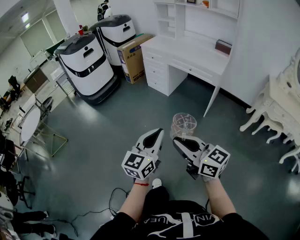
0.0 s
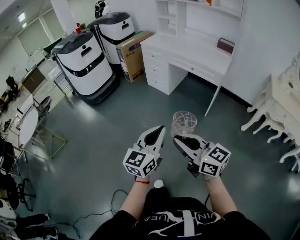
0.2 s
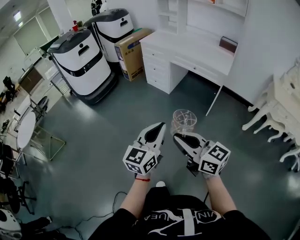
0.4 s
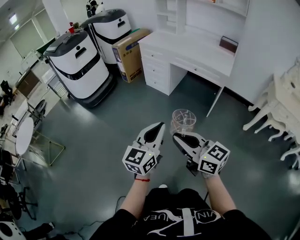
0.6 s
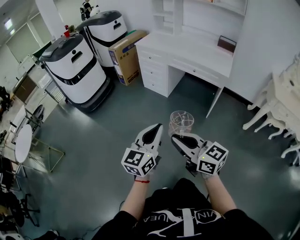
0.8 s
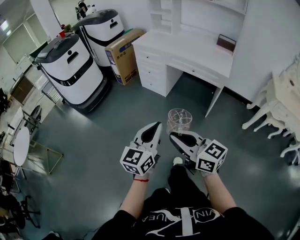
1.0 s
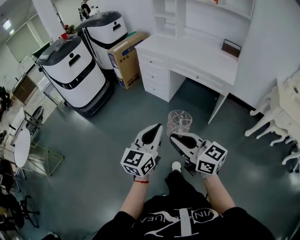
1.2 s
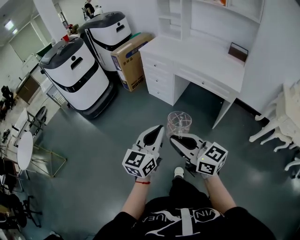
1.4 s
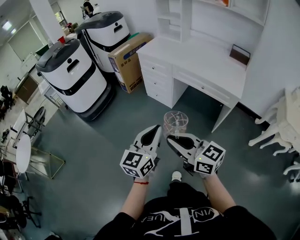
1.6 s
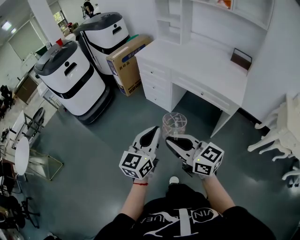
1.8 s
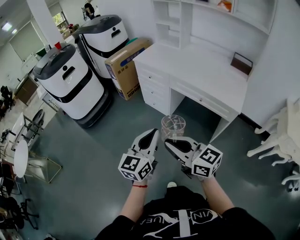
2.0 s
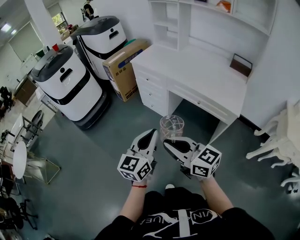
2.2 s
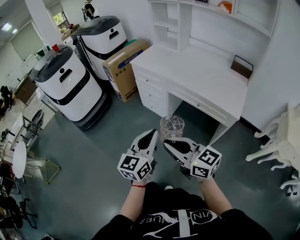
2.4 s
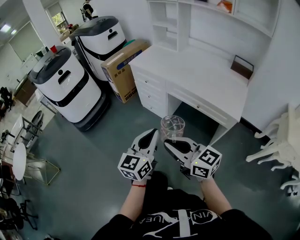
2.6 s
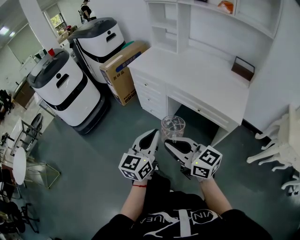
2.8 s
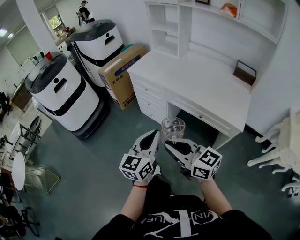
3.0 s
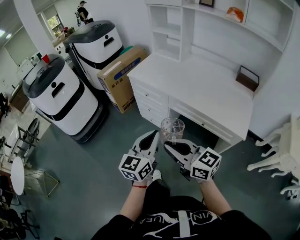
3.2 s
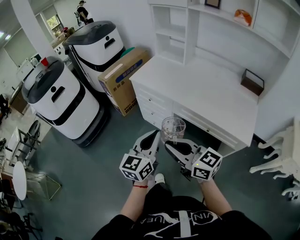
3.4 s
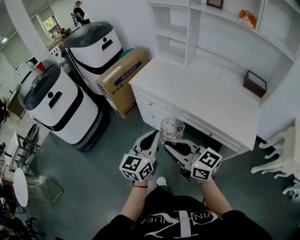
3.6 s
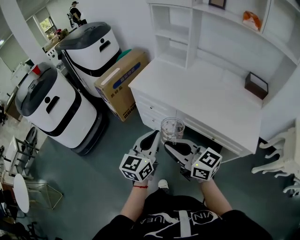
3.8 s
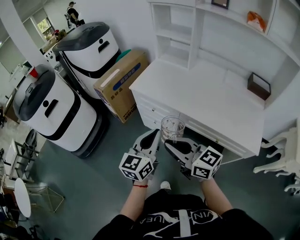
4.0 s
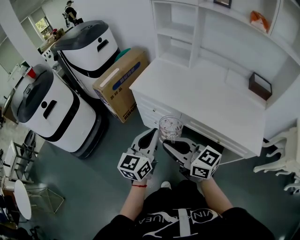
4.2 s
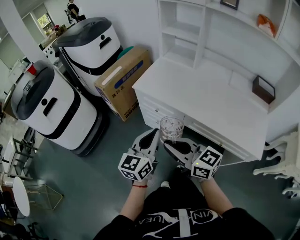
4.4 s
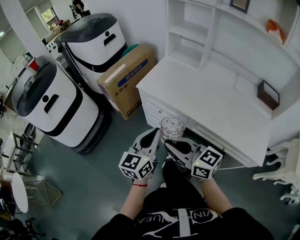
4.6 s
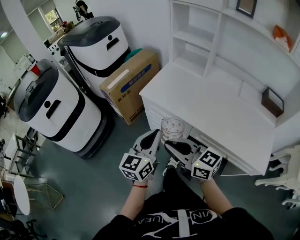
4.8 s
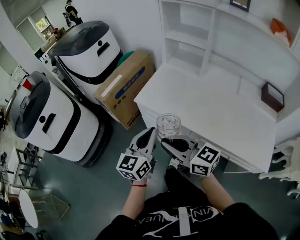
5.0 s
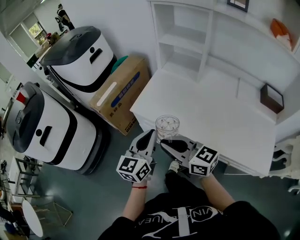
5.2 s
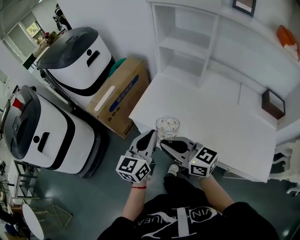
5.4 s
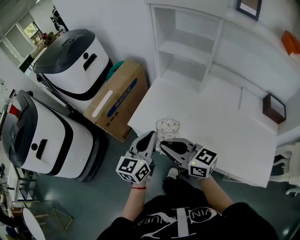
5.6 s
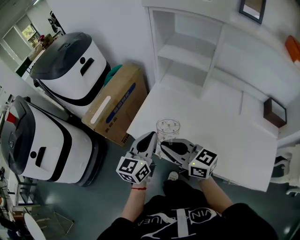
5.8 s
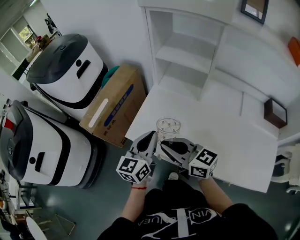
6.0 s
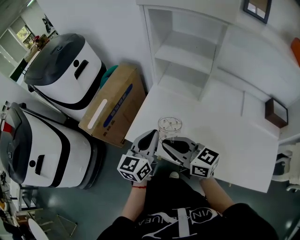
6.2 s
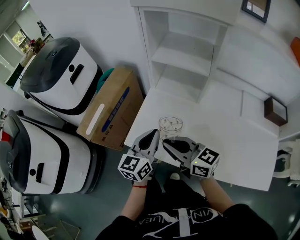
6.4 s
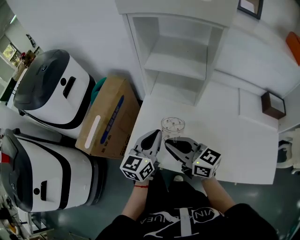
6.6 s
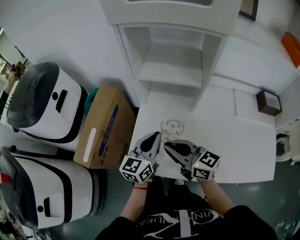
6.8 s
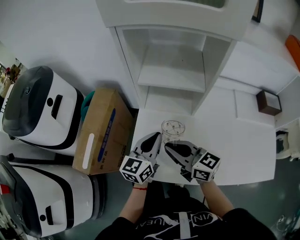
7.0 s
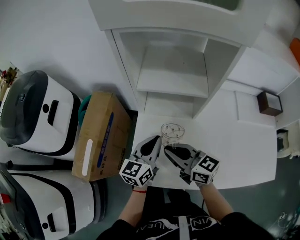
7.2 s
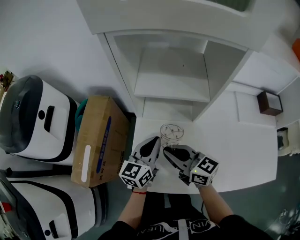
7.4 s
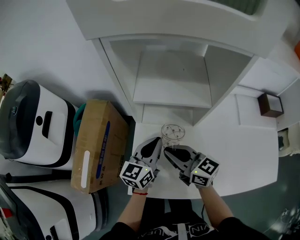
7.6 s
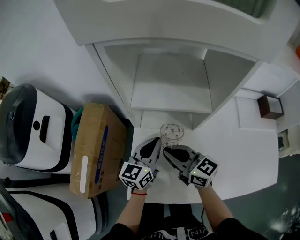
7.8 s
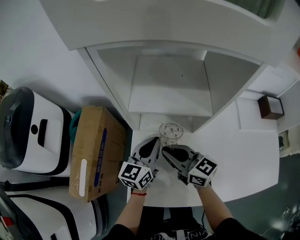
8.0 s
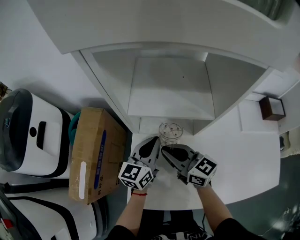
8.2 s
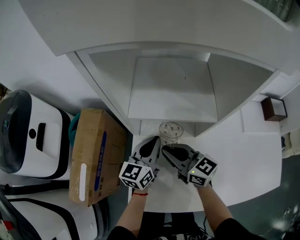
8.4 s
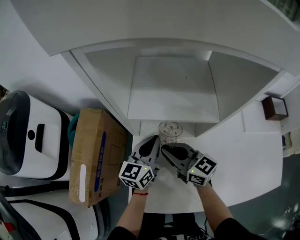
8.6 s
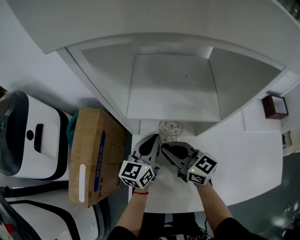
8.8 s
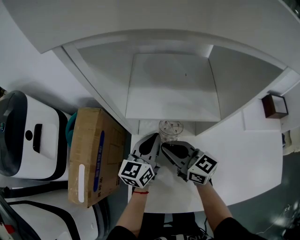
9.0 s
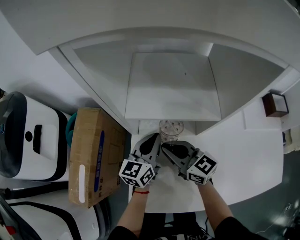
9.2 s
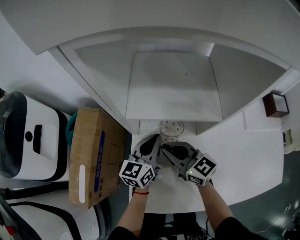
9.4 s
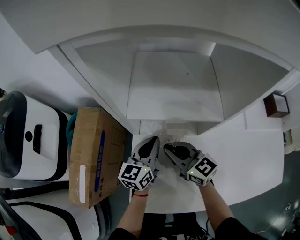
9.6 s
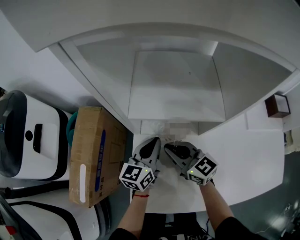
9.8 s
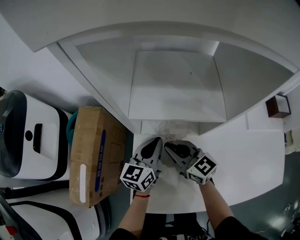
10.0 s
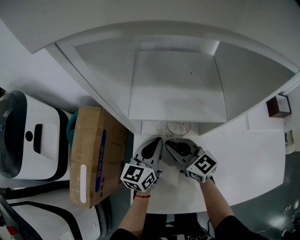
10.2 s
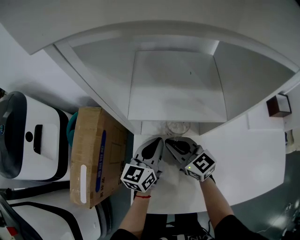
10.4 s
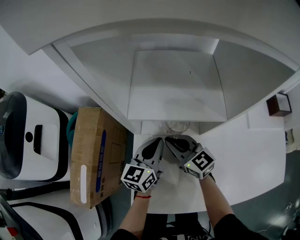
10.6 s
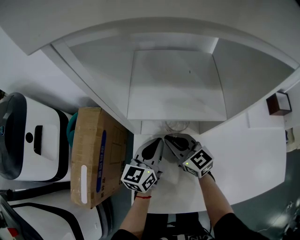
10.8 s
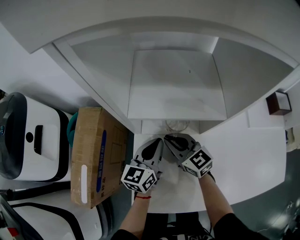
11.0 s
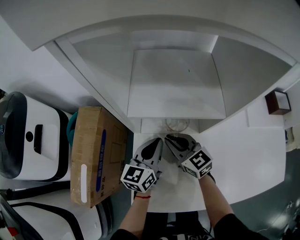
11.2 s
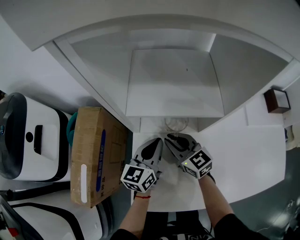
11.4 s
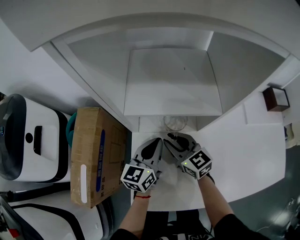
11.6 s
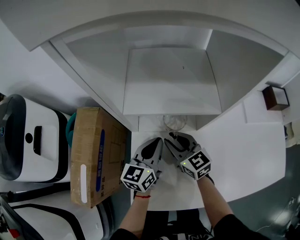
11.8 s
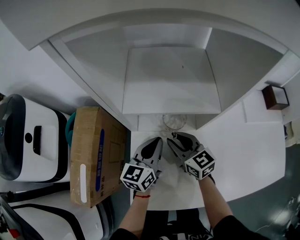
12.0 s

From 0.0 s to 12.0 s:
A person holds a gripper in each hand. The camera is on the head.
From 0.0 s to 1.6 s: The pair of grippers is taken forward, about 40 cm.
From 1.6 s to 3.0 s: The two grippers go about 25 cm forward and to the right.
From 3.0 s to 4.4 s: Both grippers move forward, roughly 30 cm.
From 4.4 s to 6.0 s: Both grippers travel together forward, roughly 35 cm.
From 6.0 s to 7.6 s: Both grippers travel together forward, some 20 cm. The right gripper changes its angle by some 20 degrees. The left gripper changes its angle by about 20 degrees.
From 7.6 s to 9.0 s: The grippers both shift forward by roughly 10 cm.
From 9.0 s to 10.4 s: The grippers move only a little.
From 10.4 s to 12.0 s: The grippers move only a little.

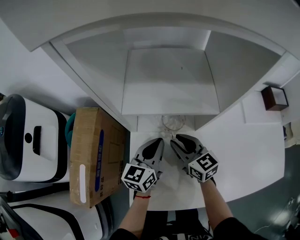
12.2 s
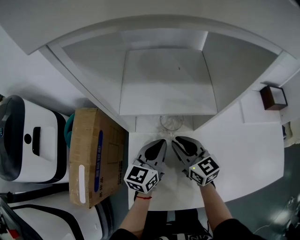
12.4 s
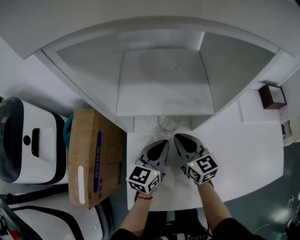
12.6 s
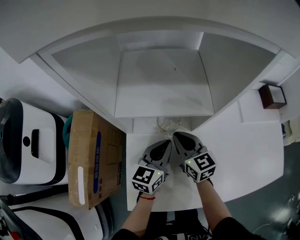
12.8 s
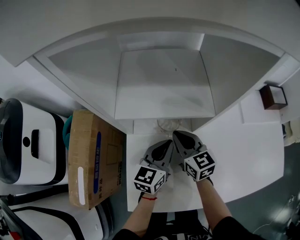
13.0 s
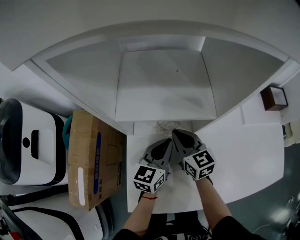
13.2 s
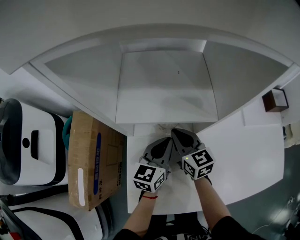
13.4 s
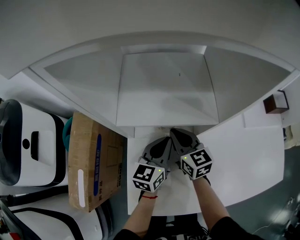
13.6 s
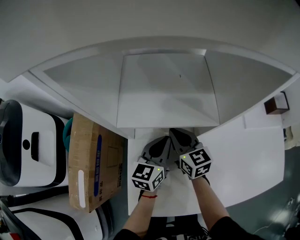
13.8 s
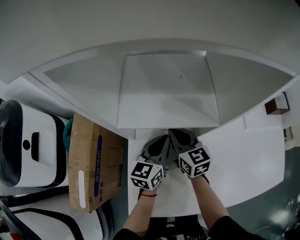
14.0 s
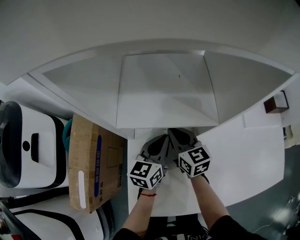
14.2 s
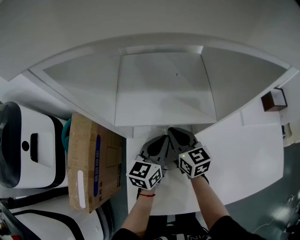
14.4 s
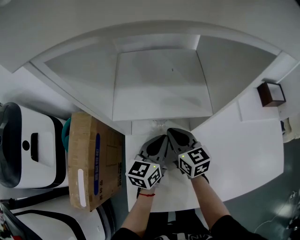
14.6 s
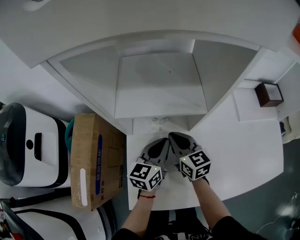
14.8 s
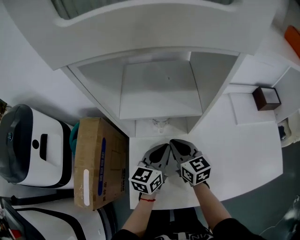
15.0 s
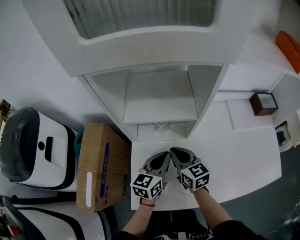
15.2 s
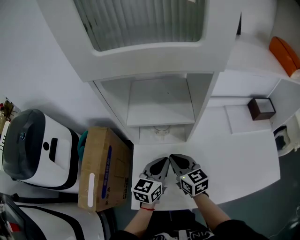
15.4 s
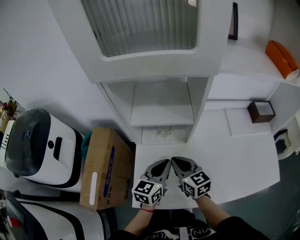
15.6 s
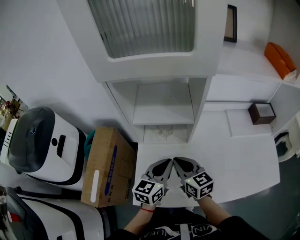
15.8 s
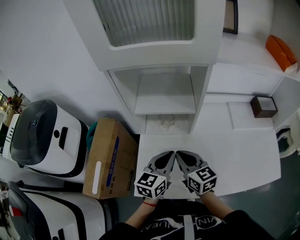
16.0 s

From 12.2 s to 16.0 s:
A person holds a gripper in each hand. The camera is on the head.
From 12.2 s to 13.4 s: The right gripper moves forward, some 5 cm.
From 13.4 s to 14.8 s: There are only small adjustments of the grippers.
From 14.8 s to 16.0 s: The left gripper is displaced upward and backward by approximately 15 cm. Meanwhile the right gripper shifts about 15 cm backward and upward.

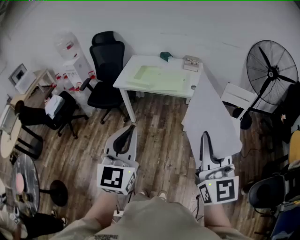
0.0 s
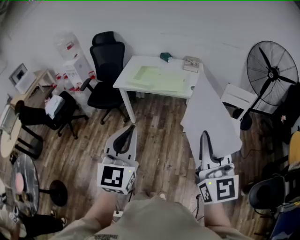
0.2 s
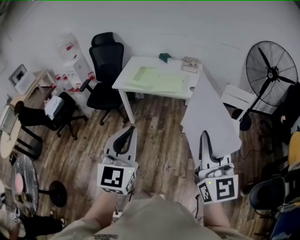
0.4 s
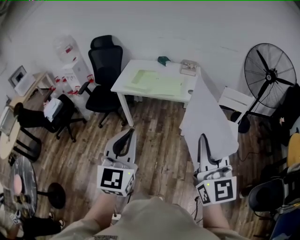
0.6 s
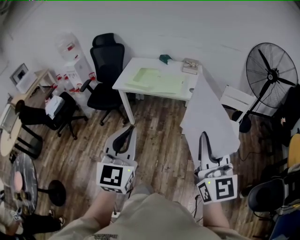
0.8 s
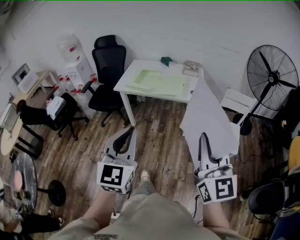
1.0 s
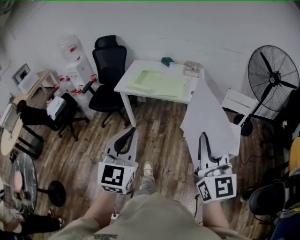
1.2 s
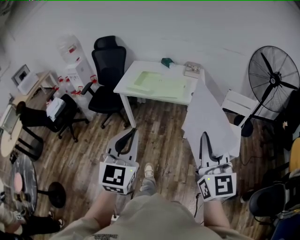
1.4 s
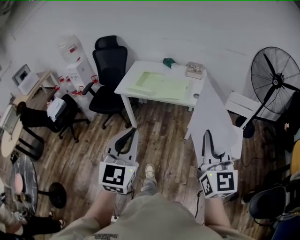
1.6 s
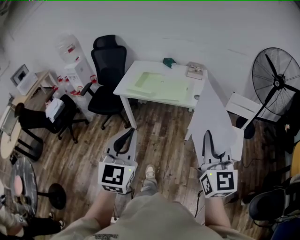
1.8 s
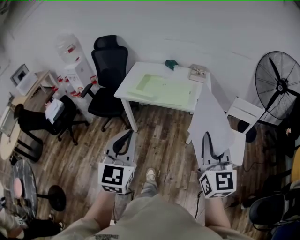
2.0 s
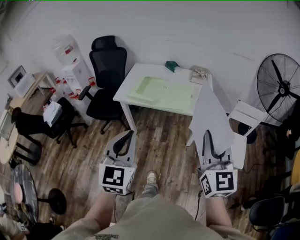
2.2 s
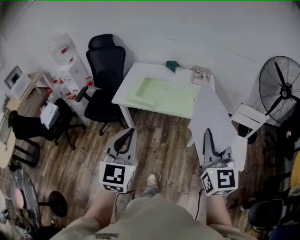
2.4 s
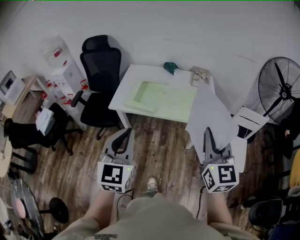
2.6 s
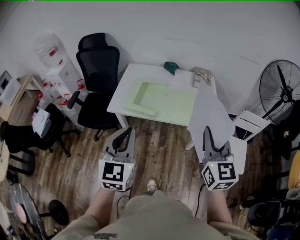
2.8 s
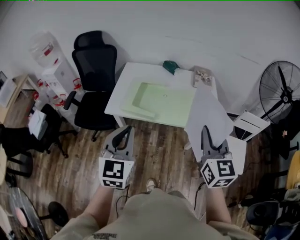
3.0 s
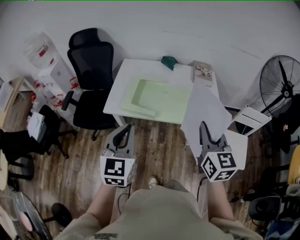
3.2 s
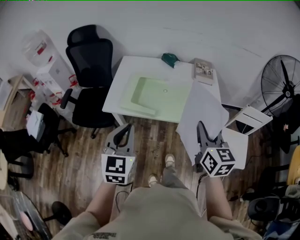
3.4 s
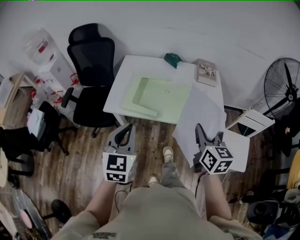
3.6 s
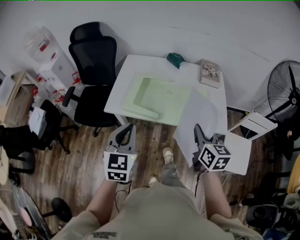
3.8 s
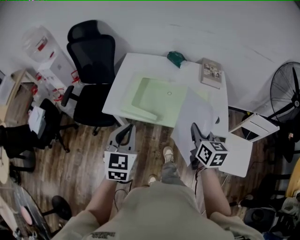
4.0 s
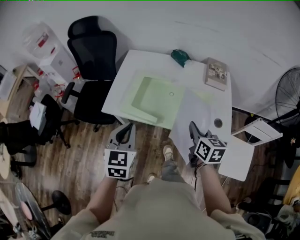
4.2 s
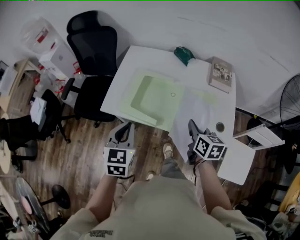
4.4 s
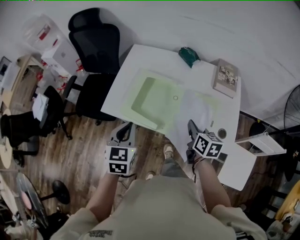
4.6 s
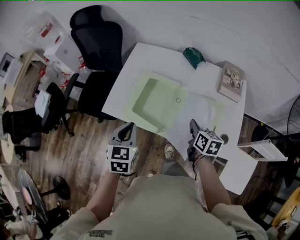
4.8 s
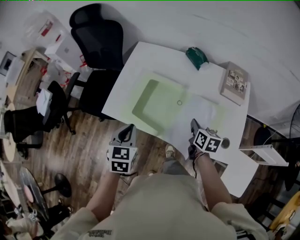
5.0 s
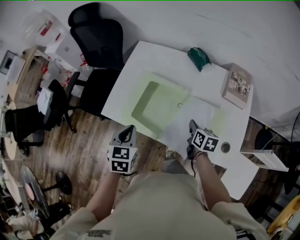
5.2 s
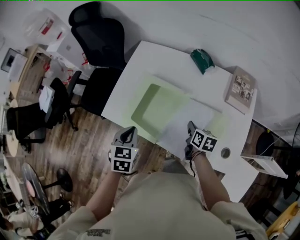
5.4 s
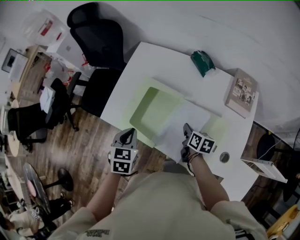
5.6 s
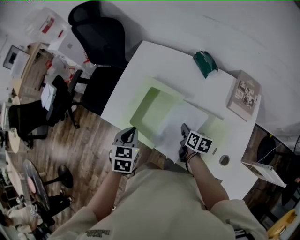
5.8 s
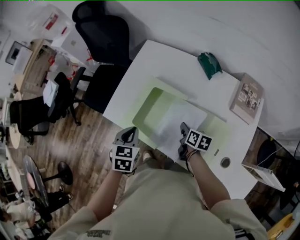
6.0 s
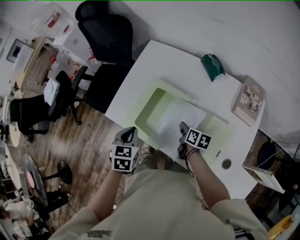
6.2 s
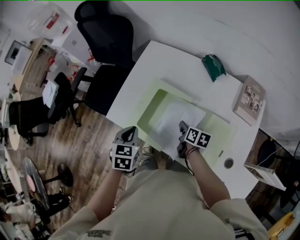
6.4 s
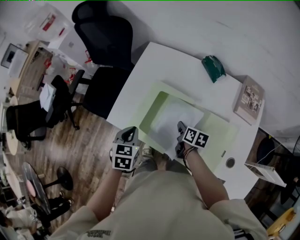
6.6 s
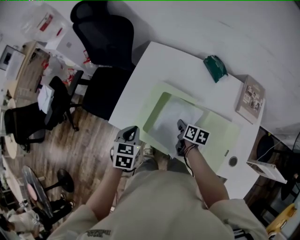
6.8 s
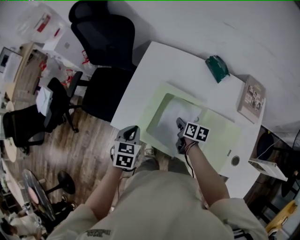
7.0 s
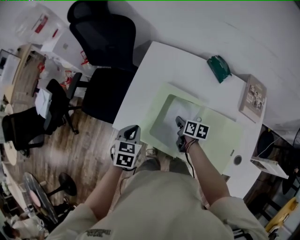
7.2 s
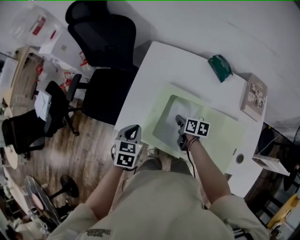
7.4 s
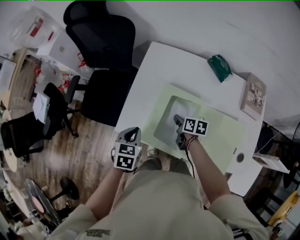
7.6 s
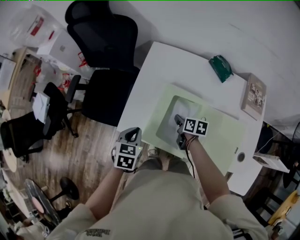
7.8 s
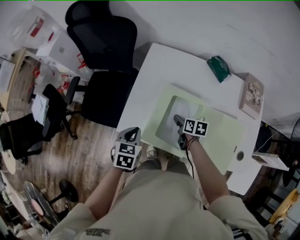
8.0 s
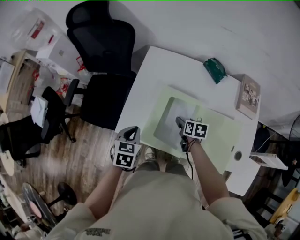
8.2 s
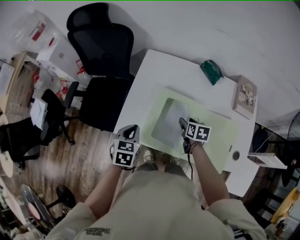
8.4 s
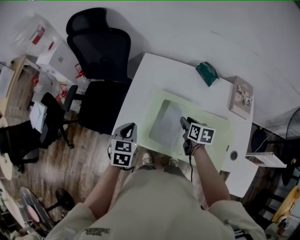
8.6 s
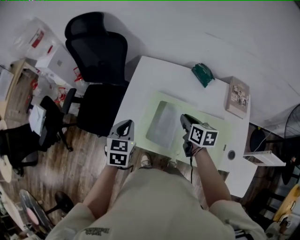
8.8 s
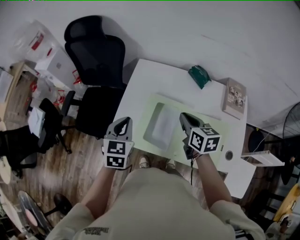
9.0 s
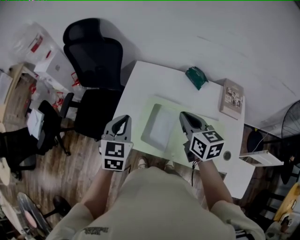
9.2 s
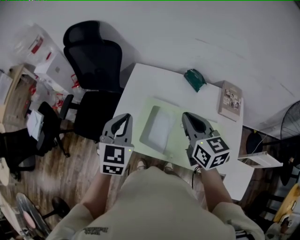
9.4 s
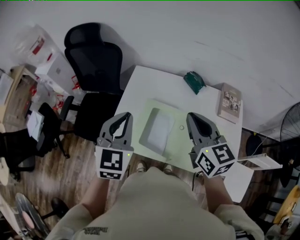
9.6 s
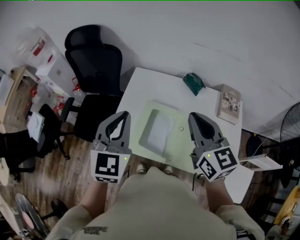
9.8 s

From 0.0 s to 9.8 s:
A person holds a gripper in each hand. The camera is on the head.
From 0.0 s to 1.4 s: The right gripper moves some 5 cm.
From 1.4 s to 2.8 s: The grippers both shift forward by about 35 cm.
From 2.8 s to 4.2 s: Both grippers travel together forward and downward, some 30 cm. The right gripper rotates roughly 40 degrees.
From 4.2 s to 5.6 s: The grippers both shift forward and downward by about 25 cm. The left gripper swivels some 30 degrees, while the right gripper turns by roughly 30 degrees.
From 5.6 s to 7.0 s: Both grippers move to the left and forward, approximately 15 cm.
From 7.0 s to 8.4 s: The right gripper opens up.
From 8.4 s to 9.8 s: Both grippers move upward, about 30 cm. The left gripper angles its fingers upward, by roughly 30 degrees. Meanwhile the right gripper points its fingers roughly 40 degrees further upward, and closes.
